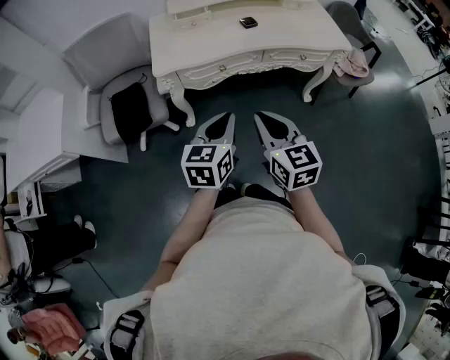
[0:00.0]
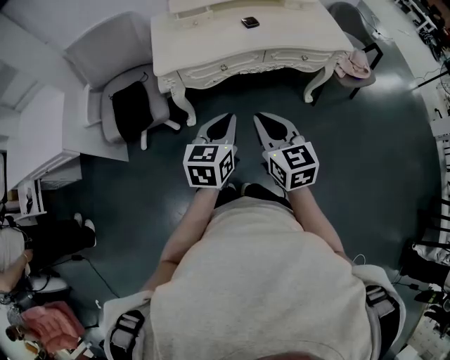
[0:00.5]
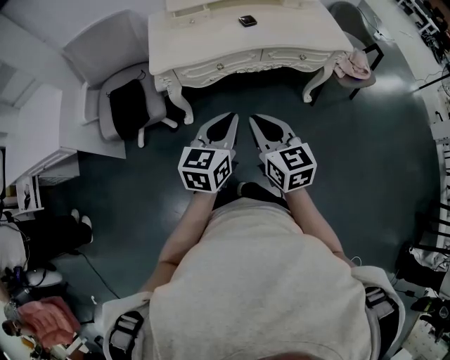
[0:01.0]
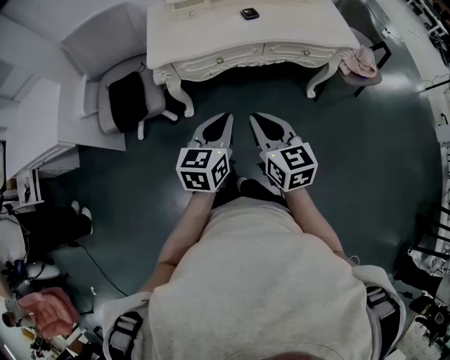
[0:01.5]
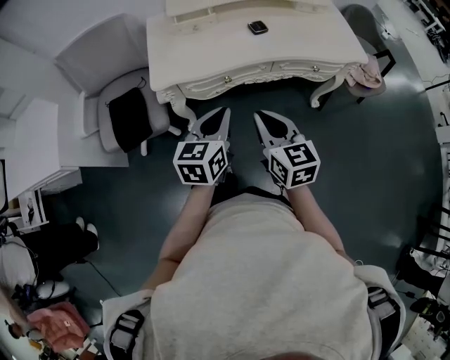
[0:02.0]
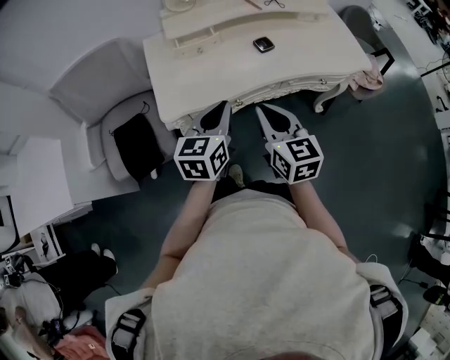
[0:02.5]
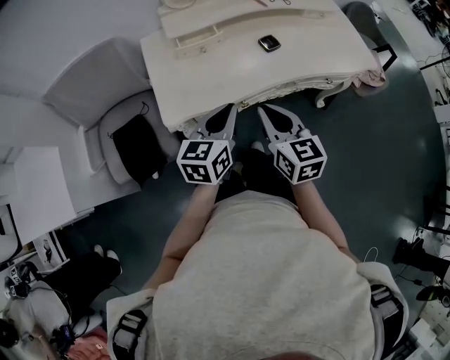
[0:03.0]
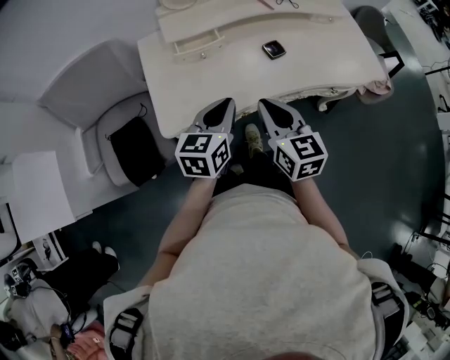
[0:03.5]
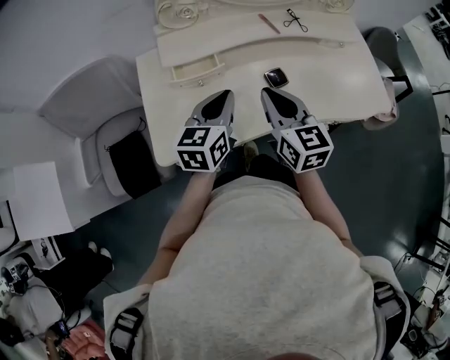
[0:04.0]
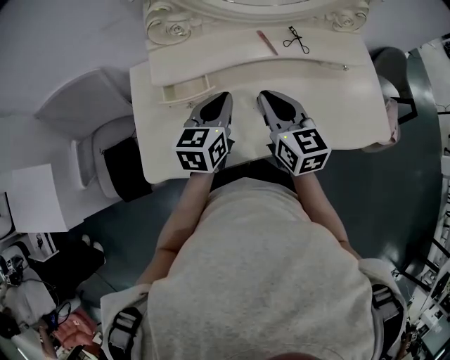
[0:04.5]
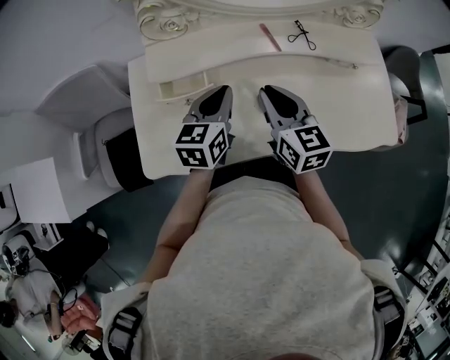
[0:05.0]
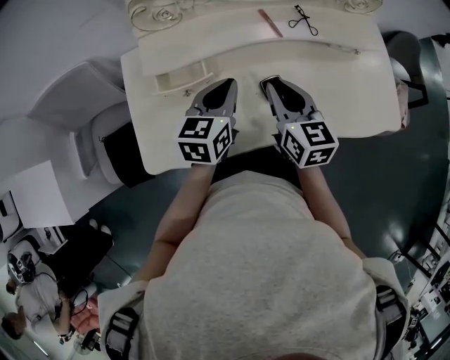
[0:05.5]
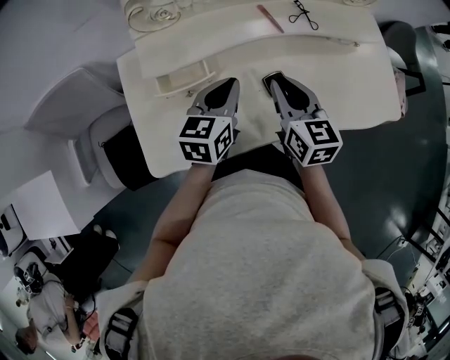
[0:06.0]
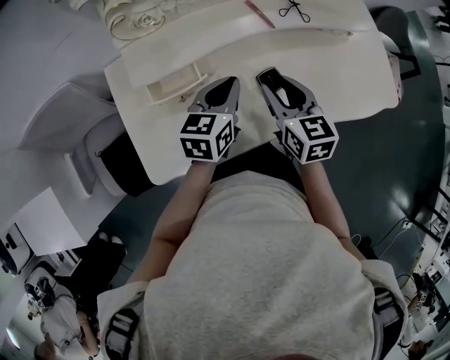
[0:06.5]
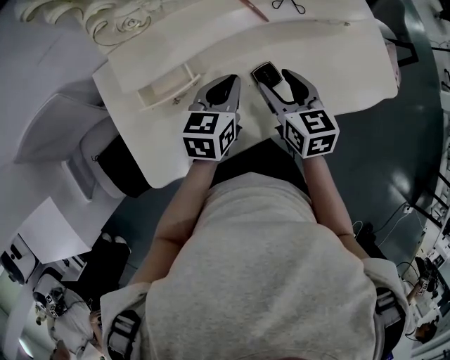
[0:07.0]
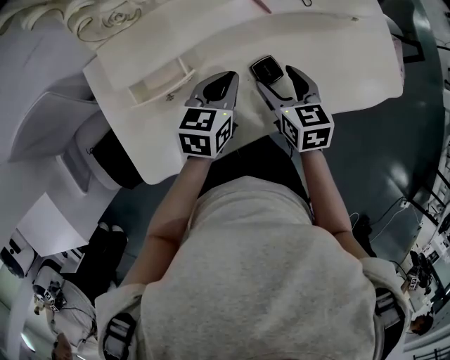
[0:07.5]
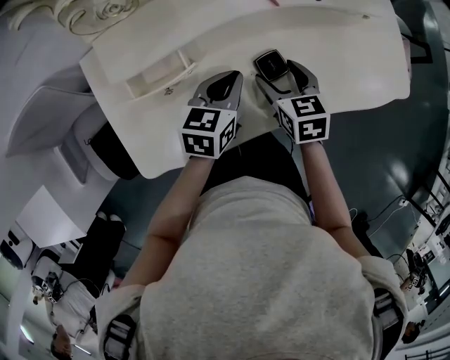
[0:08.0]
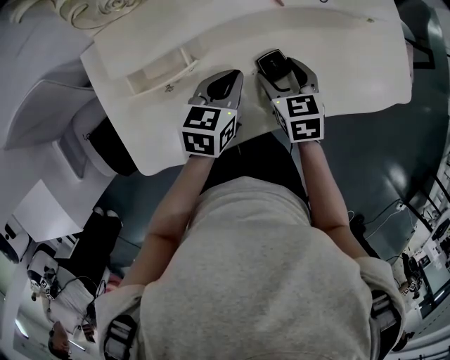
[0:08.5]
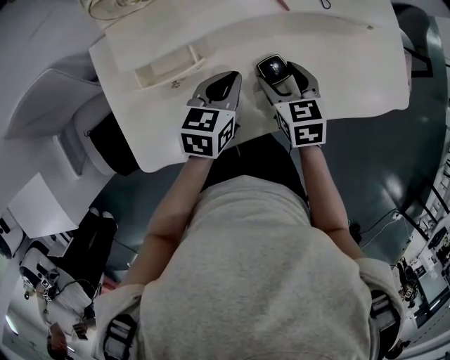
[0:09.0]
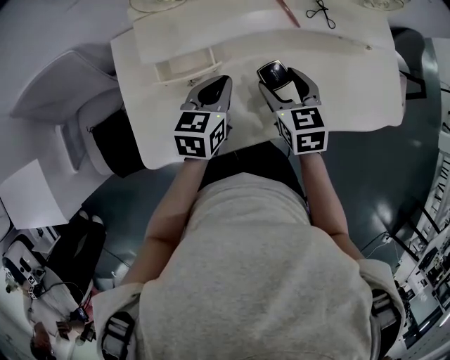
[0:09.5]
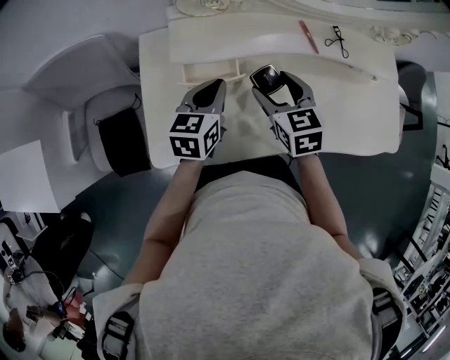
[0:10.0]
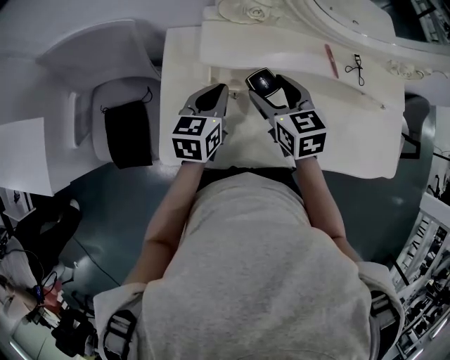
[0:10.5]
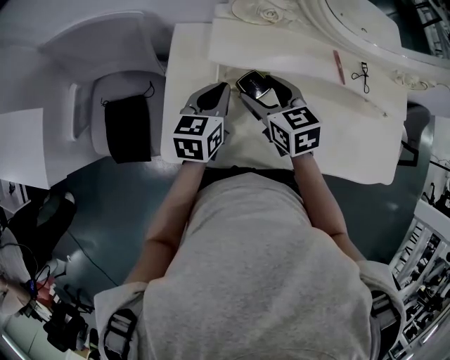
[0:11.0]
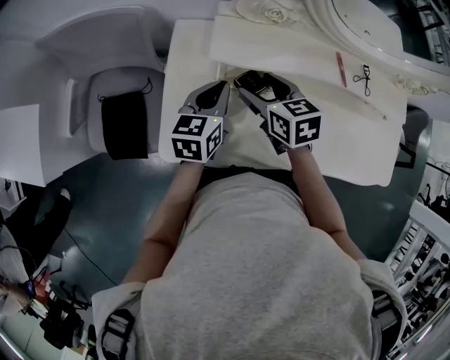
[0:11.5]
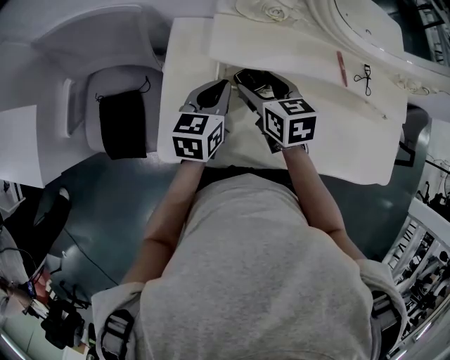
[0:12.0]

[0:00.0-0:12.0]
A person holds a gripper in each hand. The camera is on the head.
0:00.0 to 0:02.0: The two grippers go approximately 10 cm forward.
0:02.0 to 0:04.0: Both grippers move forward, about 30 cm.
0:04.0 to 0:06.0: The left gripper shifts about 10 cm forward. The right gripper shifts roughly 10 cm forward and to the right.
0:06.0 to 0:08.0: The grippers both shift downward by roughly 10 cm. The right gripper turns by about 20 degrees, and opens.
0:08.0 to 0:10.0: The two grippers go about 15 cm to the left and upward. The right gripper turns by approximately 20 degrees. The left gripper changes its angle by some 20 degrees.
0:10.0 to 0:12.0: The left gripper moves to the left, about 5 cm. The right gripper travels to the left by about 10 cm.

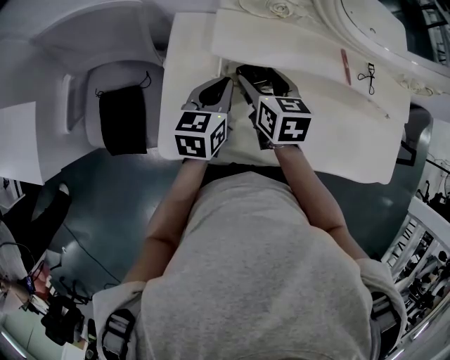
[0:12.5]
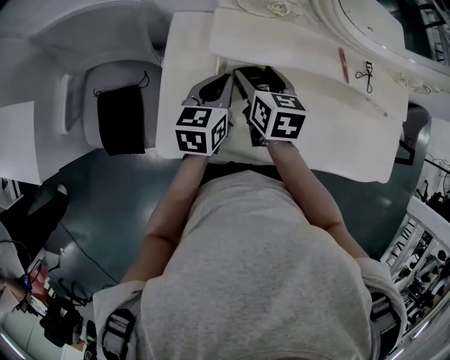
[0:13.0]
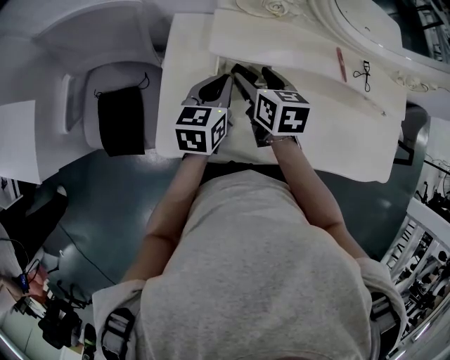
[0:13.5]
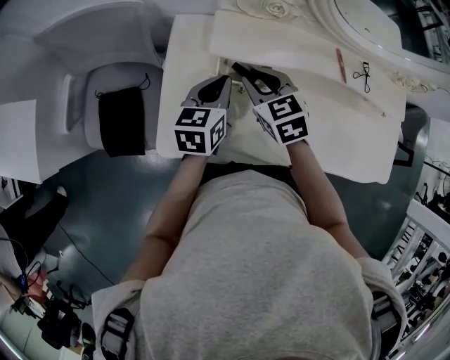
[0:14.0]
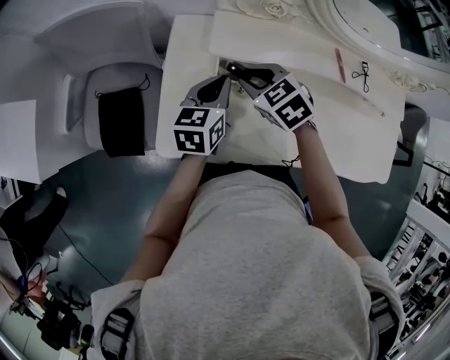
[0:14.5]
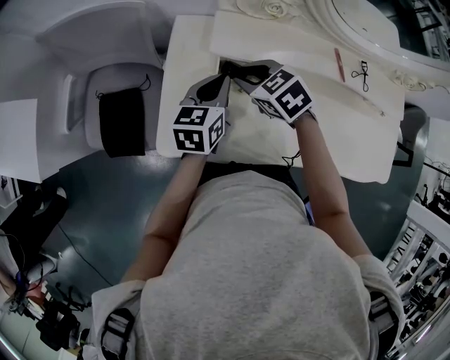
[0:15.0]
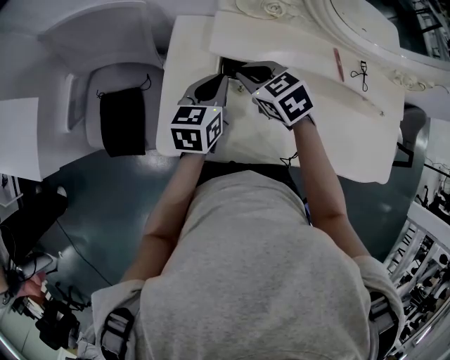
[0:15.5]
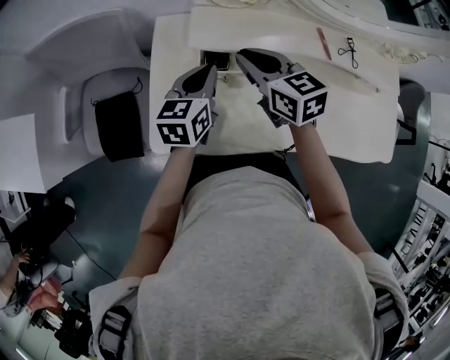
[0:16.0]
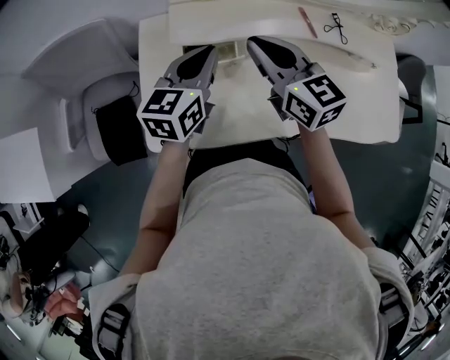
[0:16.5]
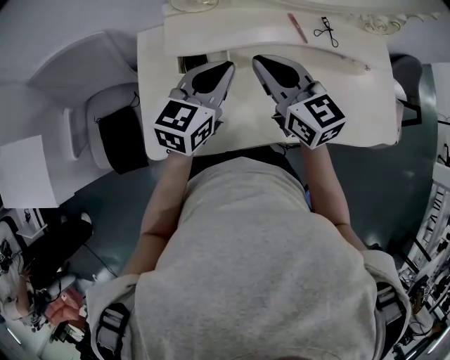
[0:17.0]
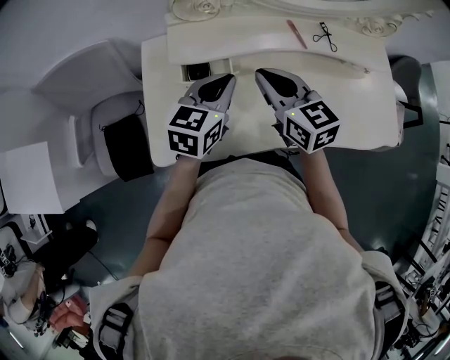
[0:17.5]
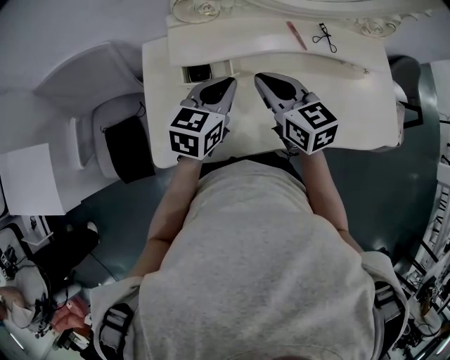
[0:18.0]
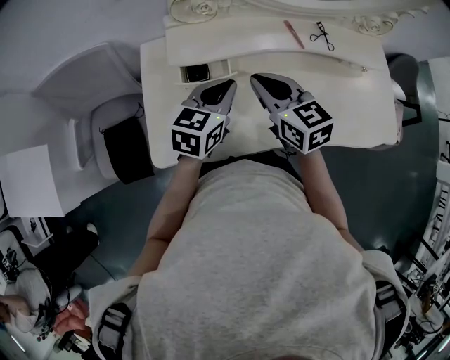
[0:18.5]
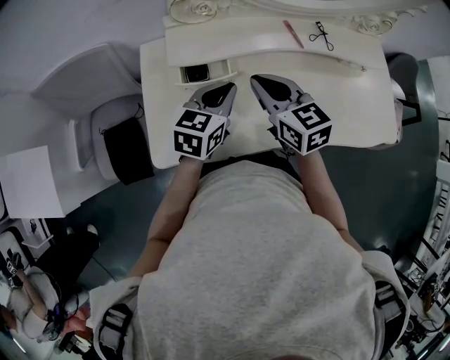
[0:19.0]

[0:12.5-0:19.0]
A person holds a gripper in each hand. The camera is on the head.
0:12.5 to 0:14.5: The right gripper turns by roughly 40 degrees, and closes up.
0:14.5 to 0:17.0: The left gripper is displaced to the right and upward by about 15 cm, and rotates roughly 30 degrees; the right gripper is displaced upward, to the right and backward by about 20 cm, and tips its fingers upward by about 40 degrees.
0:17.0 to 0:19.0: The left gripper moves downward, some 5 cm.

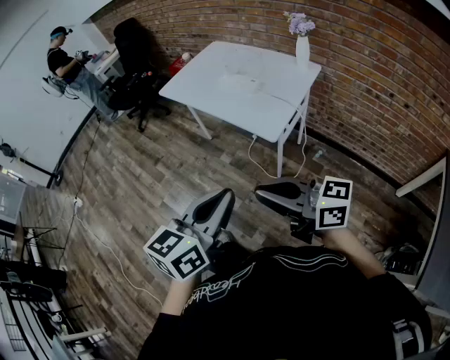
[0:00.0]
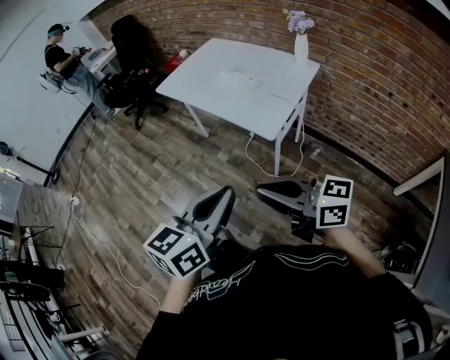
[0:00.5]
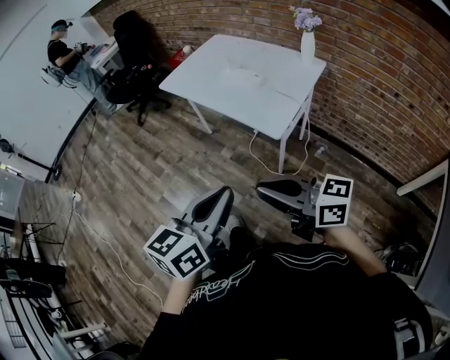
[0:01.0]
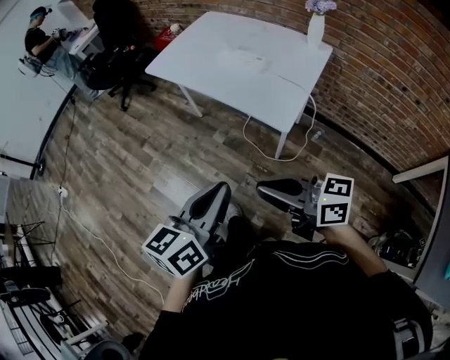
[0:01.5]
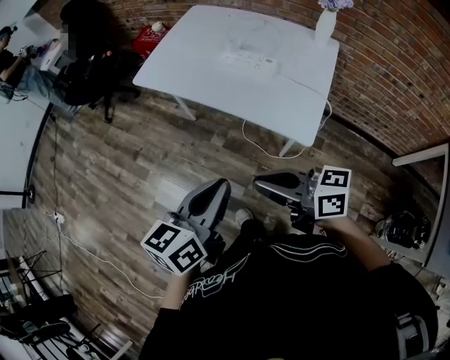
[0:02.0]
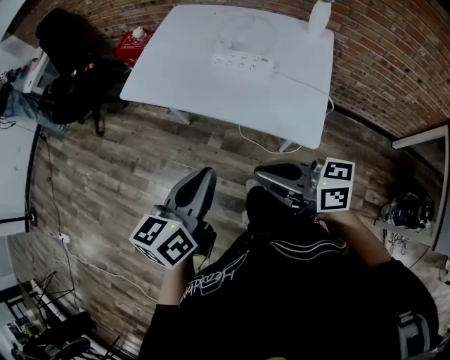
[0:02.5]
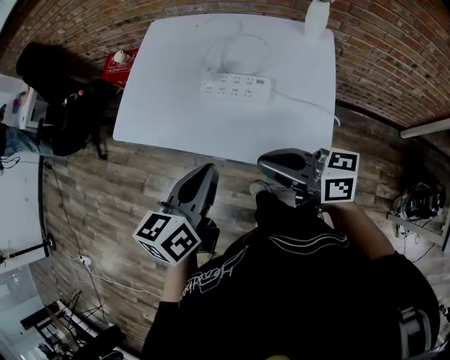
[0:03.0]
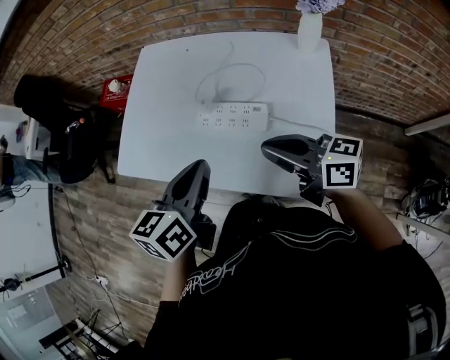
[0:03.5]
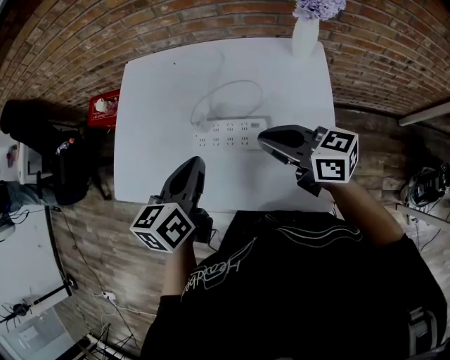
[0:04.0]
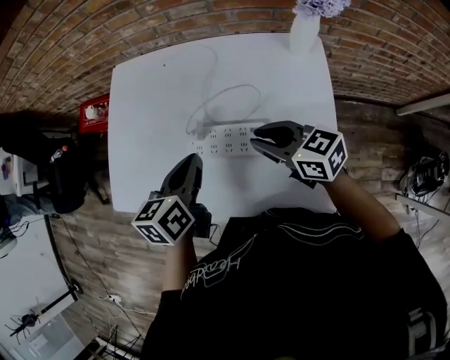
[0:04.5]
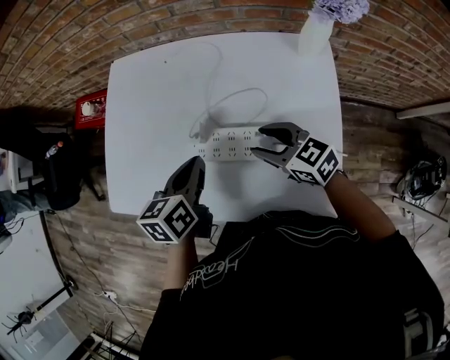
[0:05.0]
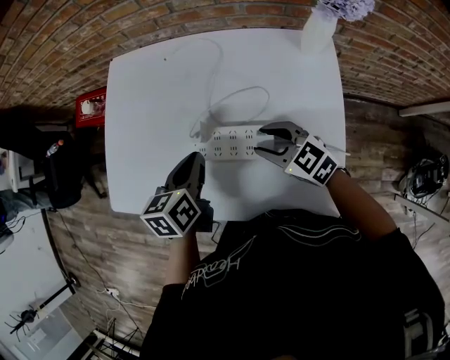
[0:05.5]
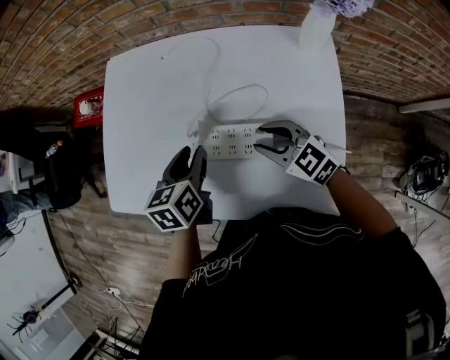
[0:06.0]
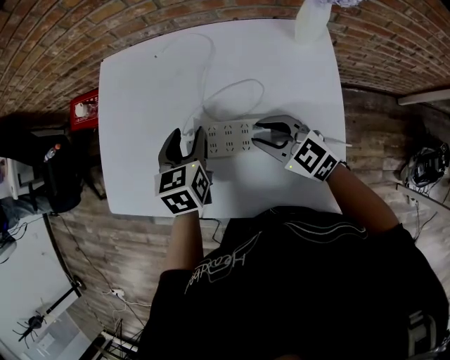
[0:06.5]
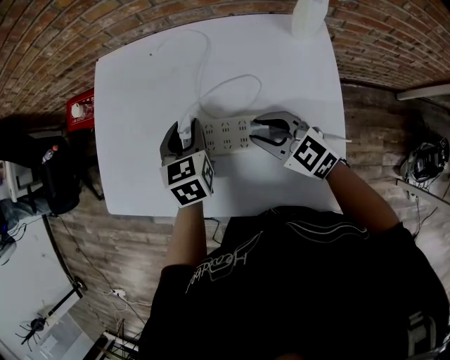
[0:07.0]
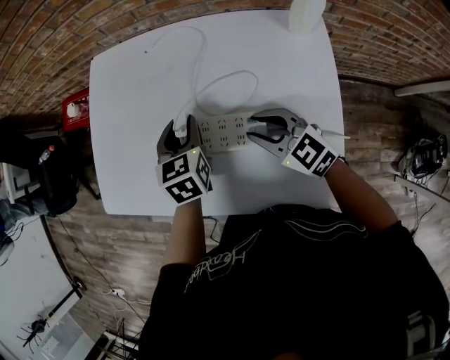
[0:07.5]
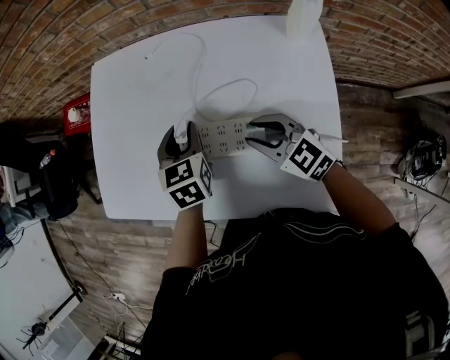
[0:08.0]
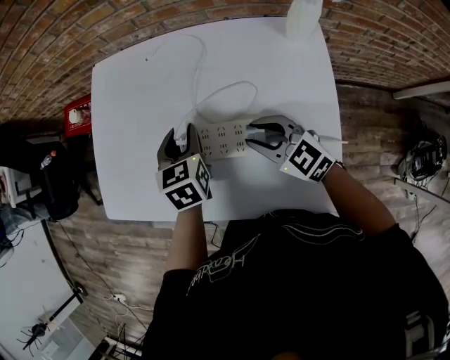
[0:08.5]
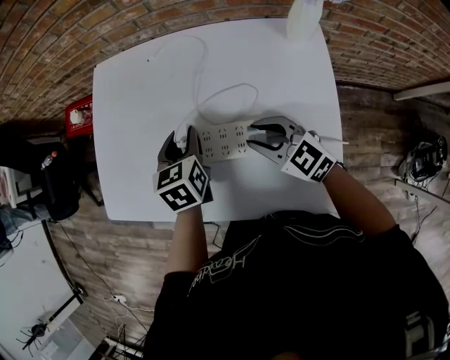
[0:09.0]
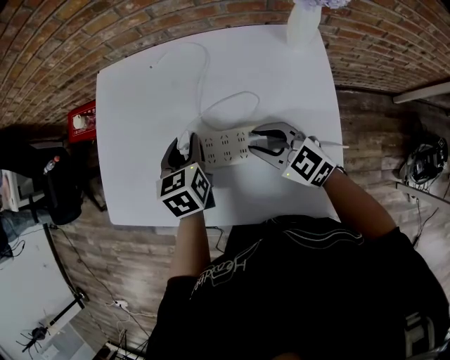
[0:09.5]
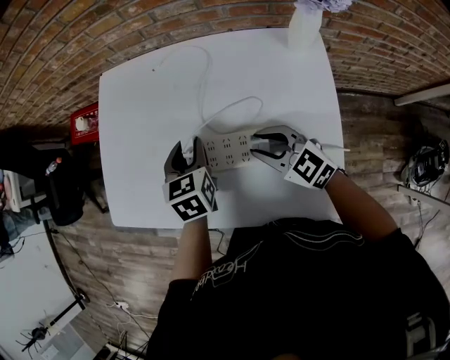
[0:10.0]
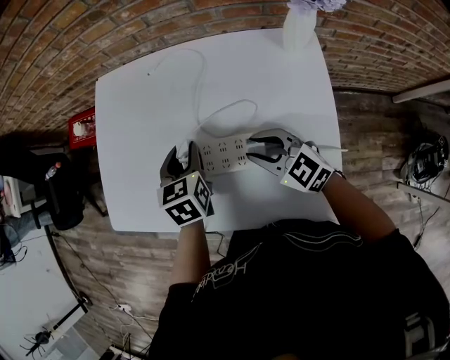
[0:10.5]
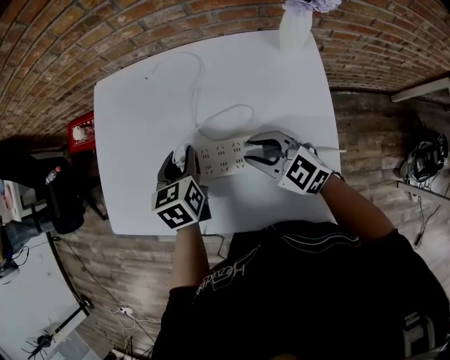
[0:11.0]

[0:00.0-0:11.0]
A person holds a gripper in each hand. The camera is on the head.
0:00.0 to 0:02.0: Both grippers travel together forward and to the left, approximately 30 cm.
0:02.0 to 0:03.5: The left gripper is displaced forward by some 35 cm, while the right gripper shifts about 35 cm forward and to the right, and swivels approximately 20 degrees.
0:03.5 to 0:05.5: The right gripper is displaced downward and forward by roughly 20 cm, tilts its fingers approximately 30 degrees downward, and opens. The left gripper goes some 20 cm forward and downward.
0:05.5 to 0:07.5: The left gripper shifts some 5 cm forward, turns by approximately 30 degrees, and opens up.
0:07.5 to 0:11.0: There are only small adjustments of the grippers.
